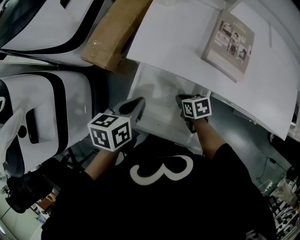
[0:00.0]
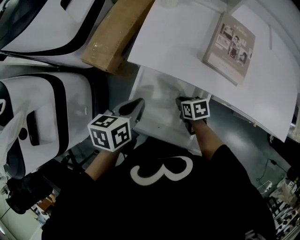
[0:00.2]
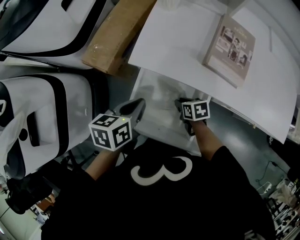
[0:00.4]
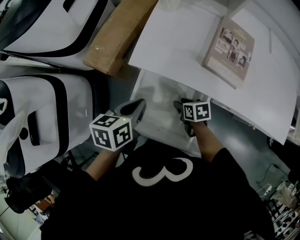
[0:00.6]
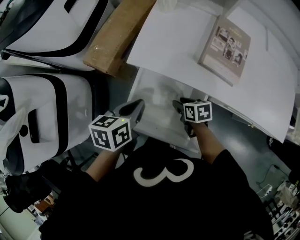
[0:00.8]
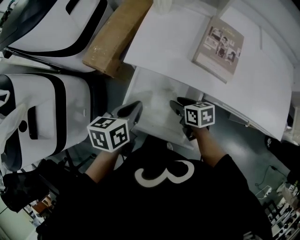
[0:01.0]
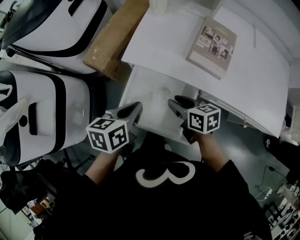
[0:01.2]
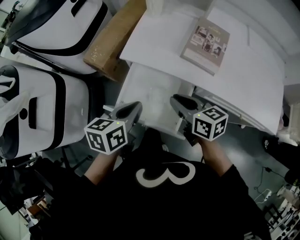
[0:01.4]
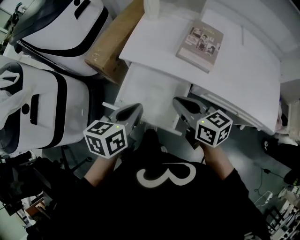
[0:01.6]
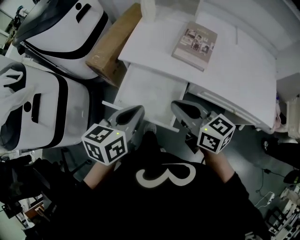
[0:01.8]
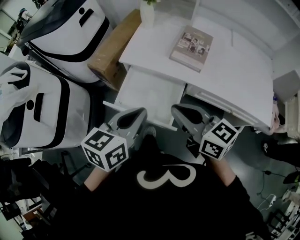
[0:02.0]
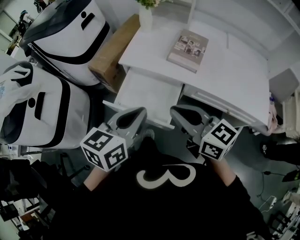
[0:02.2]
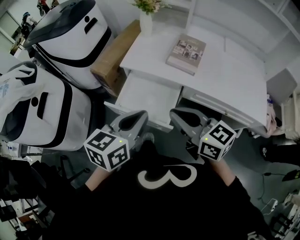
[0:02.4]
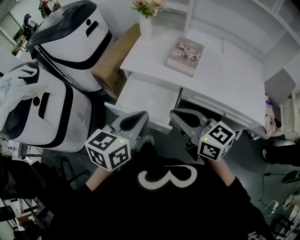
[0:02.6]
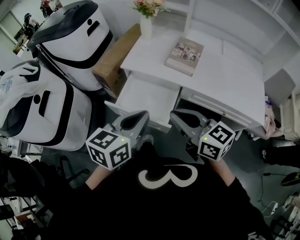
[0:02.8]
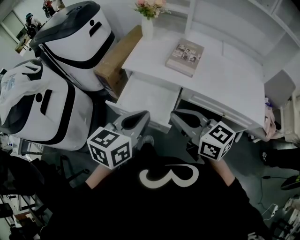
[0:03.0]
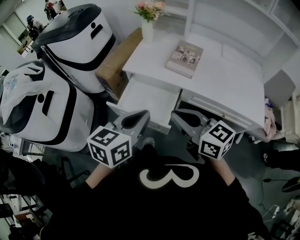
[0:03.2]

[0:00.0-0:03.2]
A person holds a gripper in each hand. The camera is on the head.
0.0 to 1.6 s: The right gripper heads upward, covering about 30 cm, tilts its fingers about 40 degrees upward, and opens, then closes once more, while the left gripper shifts approximately 15 cm backward, upward and to the right.
1.6 to 3.2 s: Both grippers move backward and upward, approximately 20 cm.

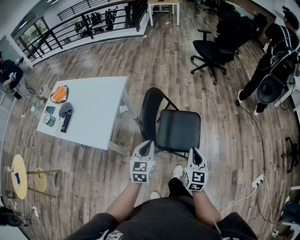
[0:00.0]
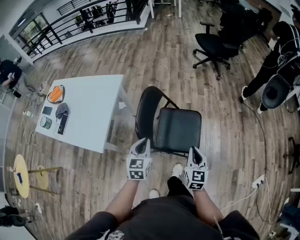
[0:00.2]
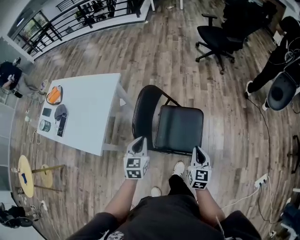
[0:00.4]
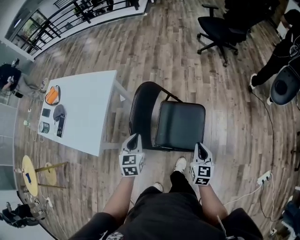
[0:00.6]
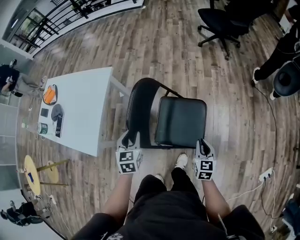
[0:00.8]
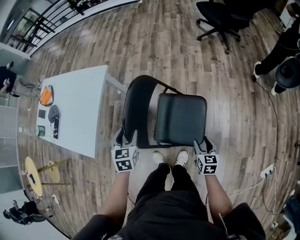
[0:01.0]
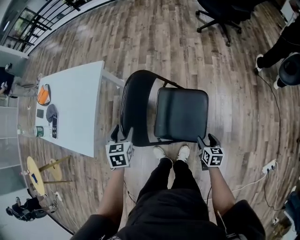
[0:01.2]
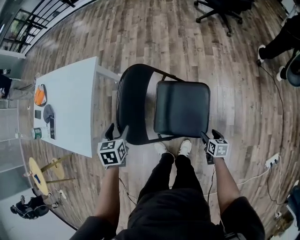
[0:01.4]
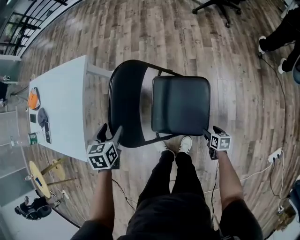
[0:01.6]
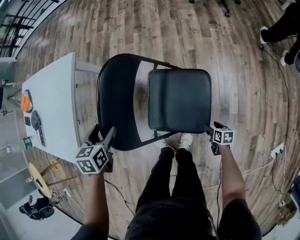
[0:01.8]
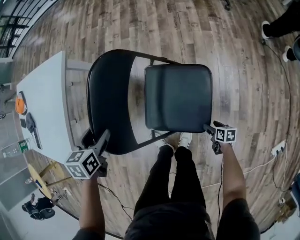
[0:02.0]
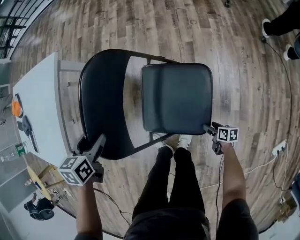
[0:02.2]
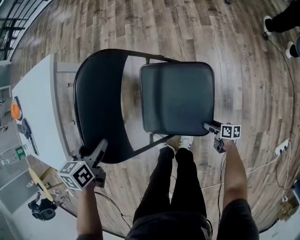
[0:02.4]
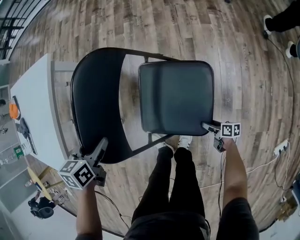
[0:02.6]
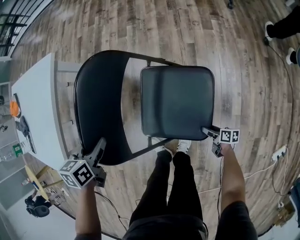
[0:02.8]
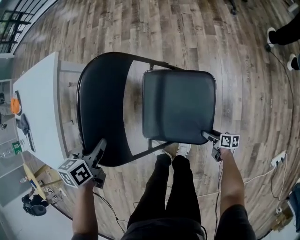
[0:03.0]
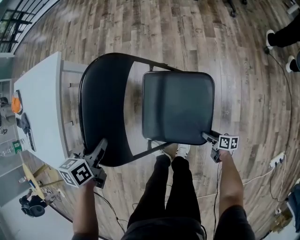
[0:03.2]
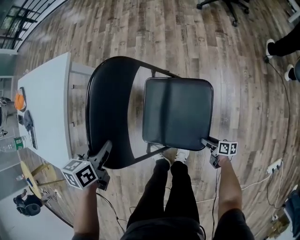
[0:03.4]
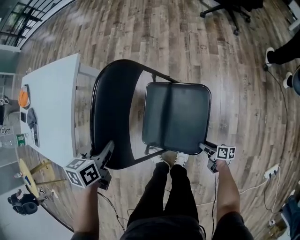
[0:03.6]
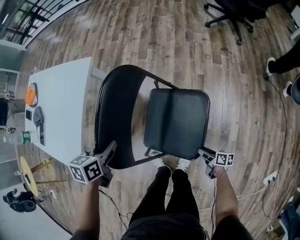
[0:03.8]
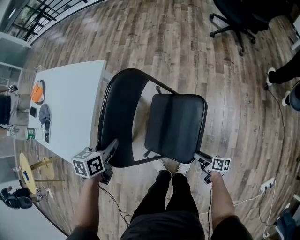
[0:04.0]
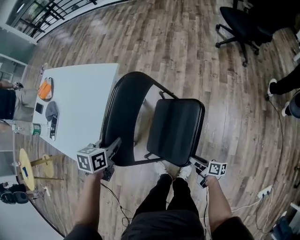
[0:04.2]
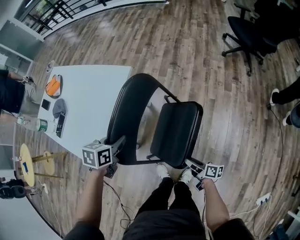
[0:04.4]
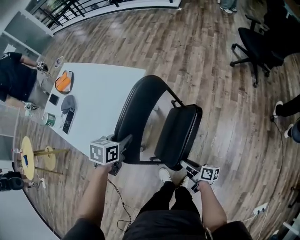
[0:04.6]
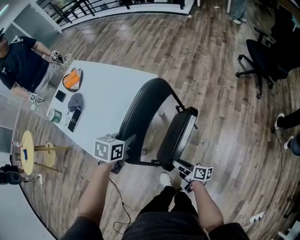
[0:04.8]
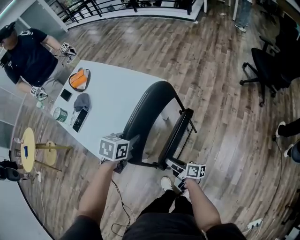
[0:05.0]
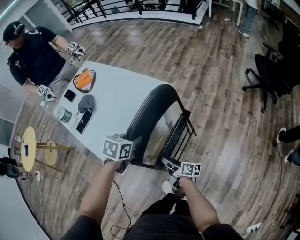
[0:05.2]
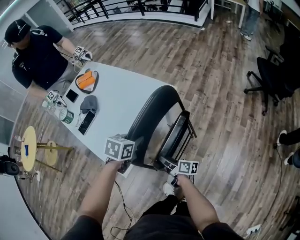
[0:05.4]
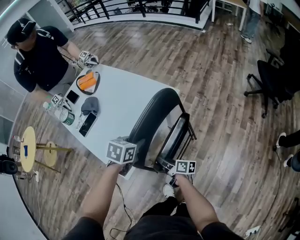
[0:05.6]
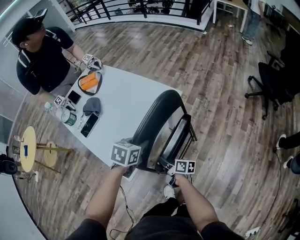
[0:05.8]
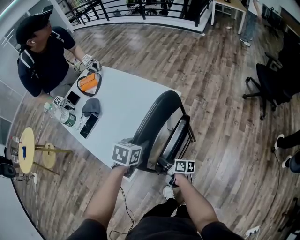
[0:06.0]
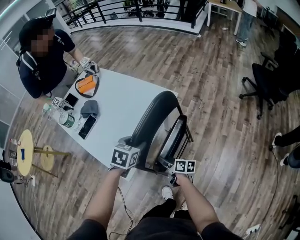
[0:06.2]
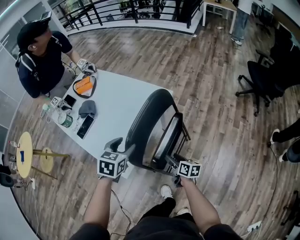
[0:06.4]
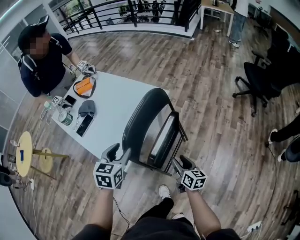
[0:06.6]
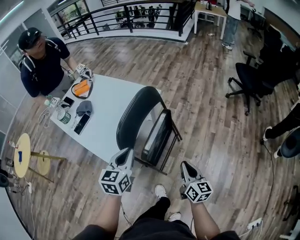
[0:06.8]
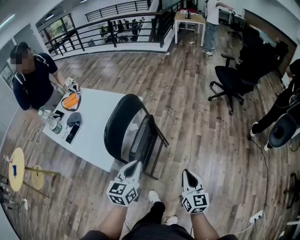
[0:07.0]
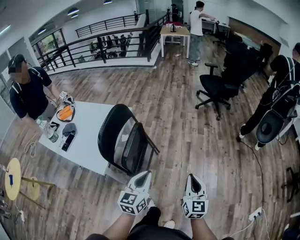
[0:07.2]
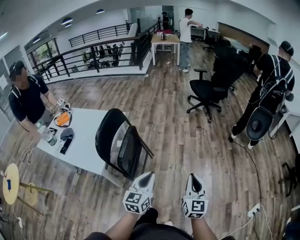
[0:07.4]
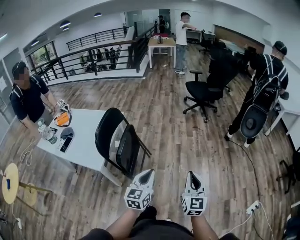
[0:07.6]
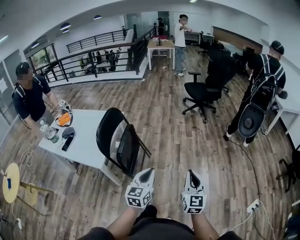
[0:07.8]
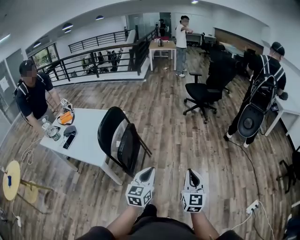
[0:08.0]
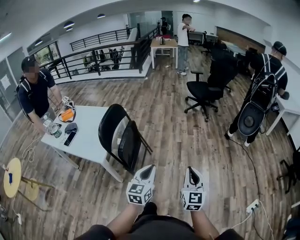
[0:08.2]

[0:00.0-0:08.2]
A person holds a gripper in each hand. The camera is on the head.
0.0 to 1.6 s: The right gripper is displaced downward by approximately 40 cm, points its fingers some 40 degrees further downward, and opens its fingers; the left gripper changes place by some 30 cm, points its fingers roughly 30 degrees further downward, and opens up.
1.6 to 3.2 s: The left gripper travels downward by about 10 cm, rotates roughly 20 degrees, and closes its fingers, while the right gripper goes about 15 cm downward, and swivels some 30 degrees.
3.2 to 5.0 s: The left gripper moves to the left, upward and forward, approximately 30 cm. Meanwhile the right gripper heads to the left, upward and forward, covering about 60 cm, turns by about 30 degrees, and closes its fingers.
5.0 to 6.6 s: The right gripper is displaced upward by roughly 5 cm, travels to the left and back again, some 10 cm each way, and turns by some 40 degrees, while the left gripper is displaced to the left, upward and backward by roughly 15 cm, changes its angle by approximately 30 degrees, and opens.
6.6 to 8.2 s: The two grippers travel together, approximately 50 cm. The right gripper turns by approximately 60 degrees, and closes; the left gripper turns by approximately 40 degrees, and closes up.

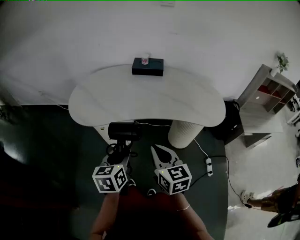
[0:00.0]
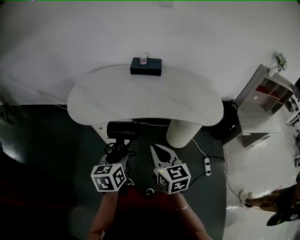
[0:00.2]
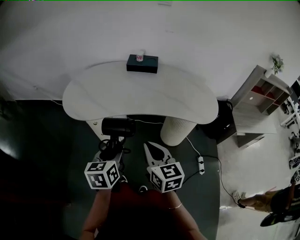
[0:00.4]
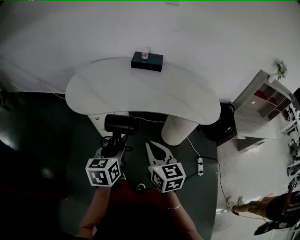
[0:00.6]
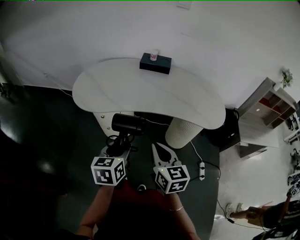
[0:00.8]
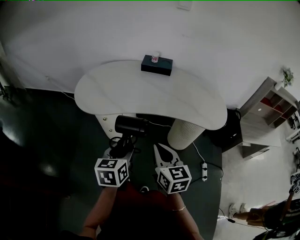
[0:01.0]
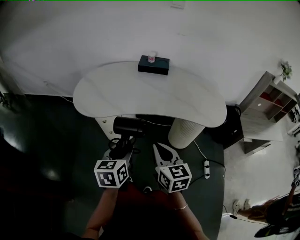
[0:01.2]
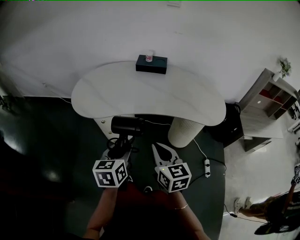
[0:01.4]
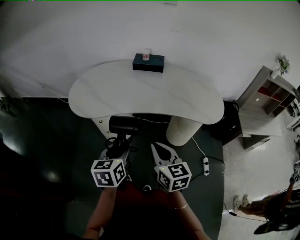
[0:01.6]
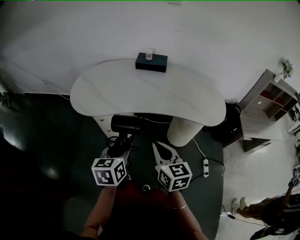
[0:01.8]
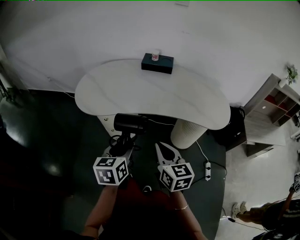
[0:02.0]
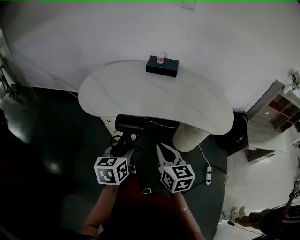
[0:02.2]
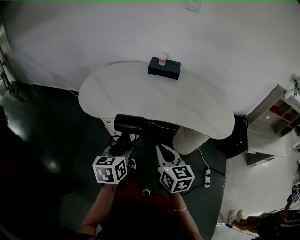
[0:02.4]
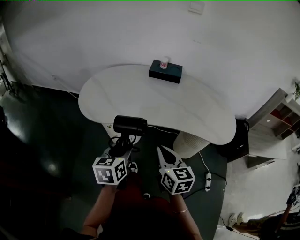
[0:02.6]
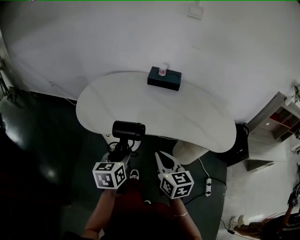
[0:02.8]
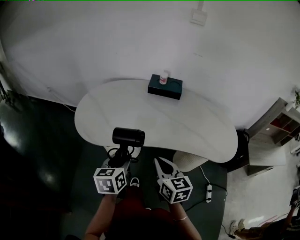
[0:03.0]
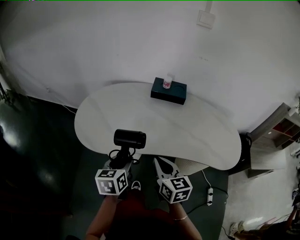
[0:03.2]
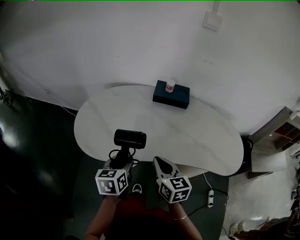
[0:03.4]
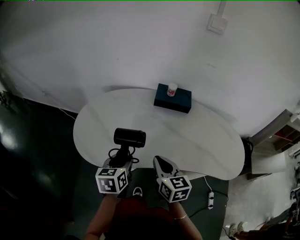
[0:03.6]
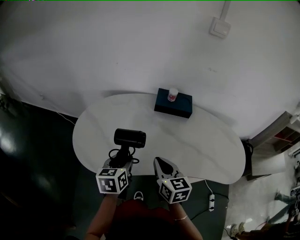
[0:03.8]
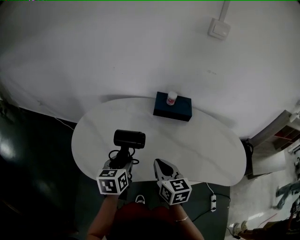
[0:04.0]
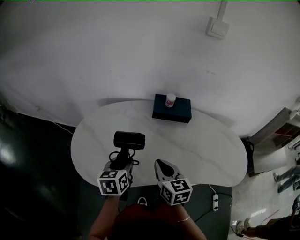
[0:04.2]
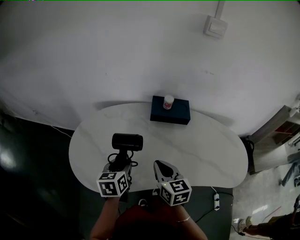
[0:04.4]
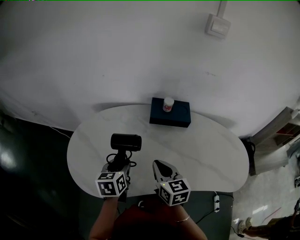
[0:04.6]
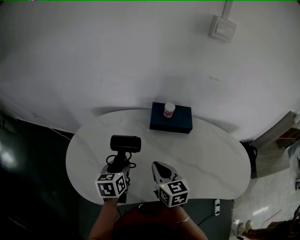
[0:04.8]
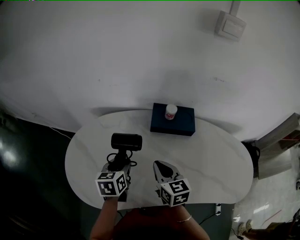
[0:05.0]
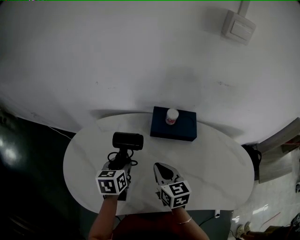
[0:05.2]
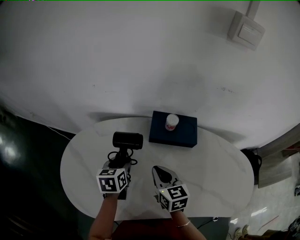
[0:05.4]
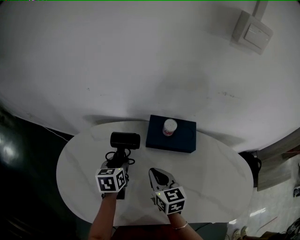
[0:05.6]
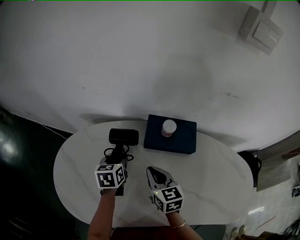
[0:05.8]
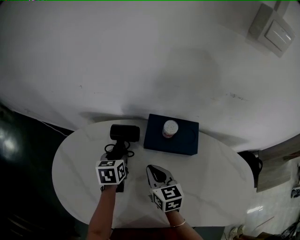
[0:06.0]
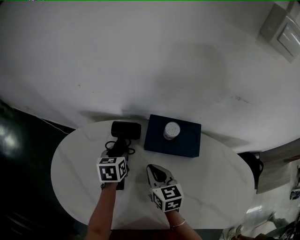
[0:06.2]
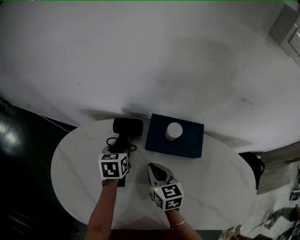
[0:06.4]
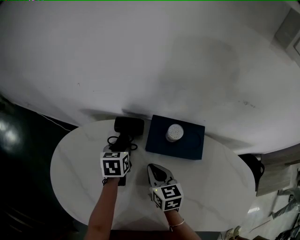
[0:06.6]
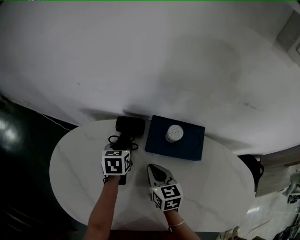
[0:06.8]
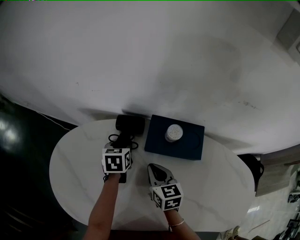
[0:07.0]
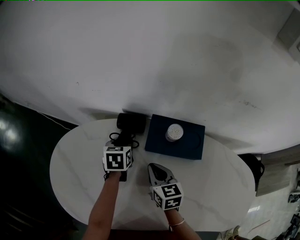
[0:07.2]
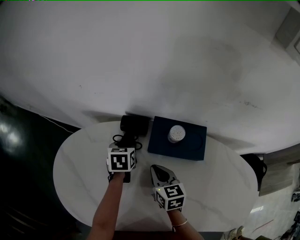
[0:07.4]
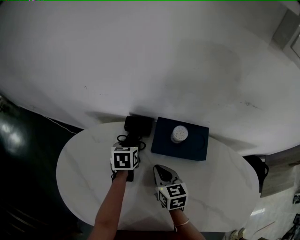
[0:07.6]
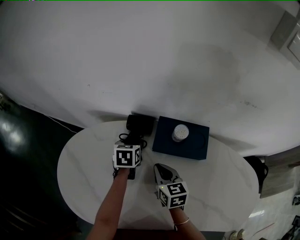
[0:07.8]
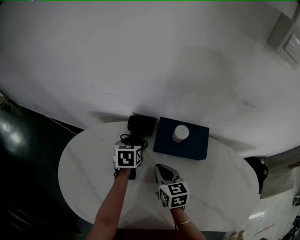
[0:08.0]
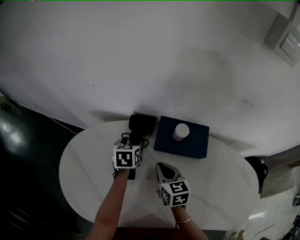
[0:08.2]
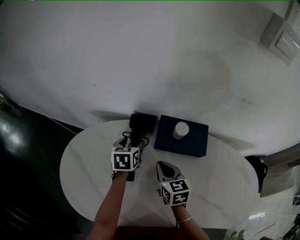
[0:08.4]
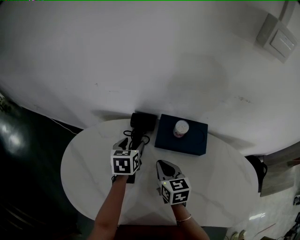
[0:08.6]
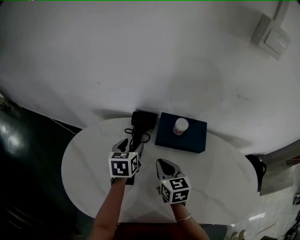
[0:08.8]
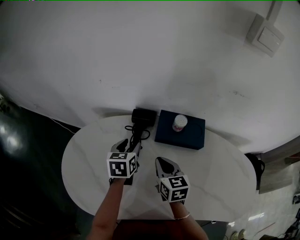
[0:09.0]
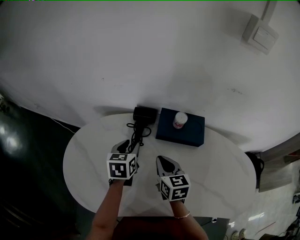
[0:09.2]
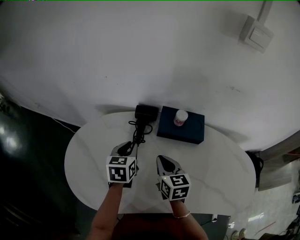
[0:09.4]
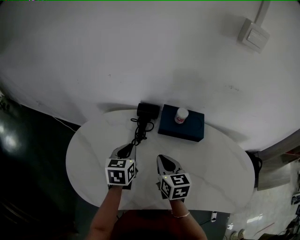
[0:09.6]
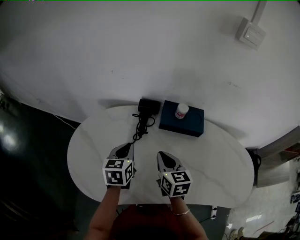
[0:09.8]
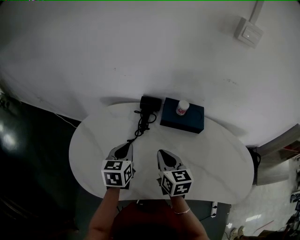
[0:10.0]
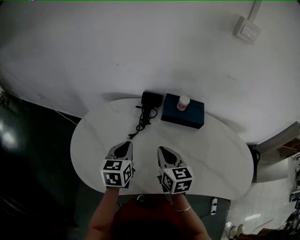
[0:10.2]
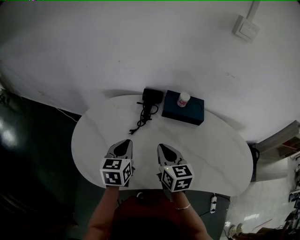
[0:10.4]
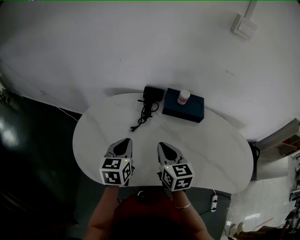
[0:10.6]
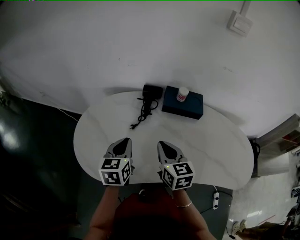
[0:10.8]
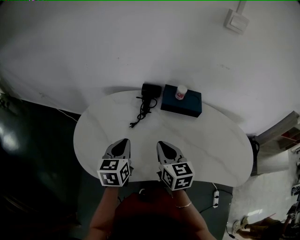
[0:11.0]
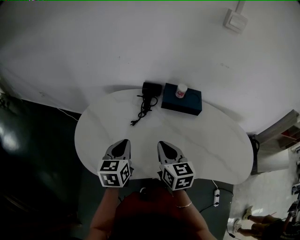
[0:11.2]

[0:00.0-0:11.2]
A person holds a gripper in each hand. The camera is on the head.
0.0 to 1.6 s: The grippers move only a little.
1.6 to 3.2 s: The two grippers go approximately 20 cm forward.
3.2 to 4.8 s: The grippers both shift forward by some 25 cm.
4.8 to 6.4 s: The left gripper moves forward, some 25 cm. Meanwhile the right gripper heads forward and downward, covering roughly 20 cm.
6.4 to 8.0 s: The grippers make only small movements.
8.0 to 9.6 s: The right gripper goes roughly 10 cm backward and upward. Meanwhile the left gripper travels backward and upward by approximately 20 cm, and closes.
9.6 to 11.2 s: The right gripper travels backward and upward by roughly 15 cm. The left gripper goes roughly 15 cm backward.

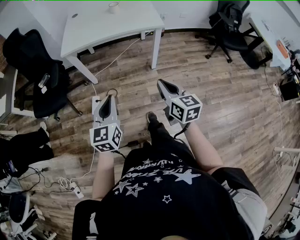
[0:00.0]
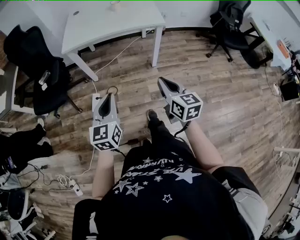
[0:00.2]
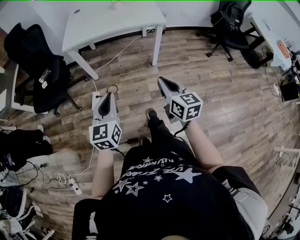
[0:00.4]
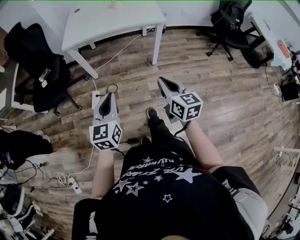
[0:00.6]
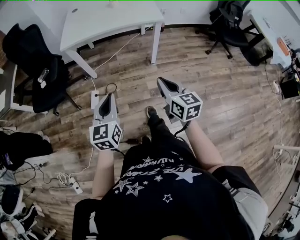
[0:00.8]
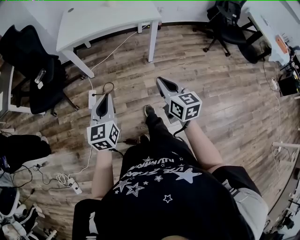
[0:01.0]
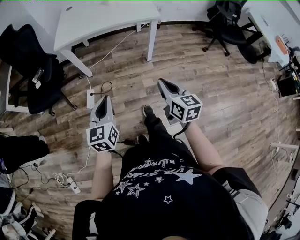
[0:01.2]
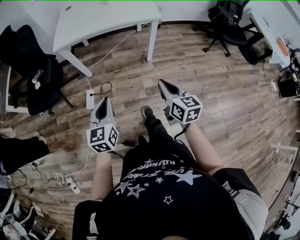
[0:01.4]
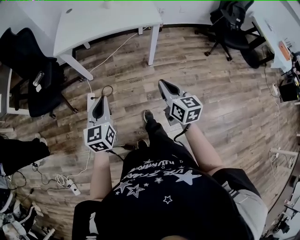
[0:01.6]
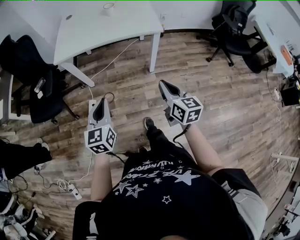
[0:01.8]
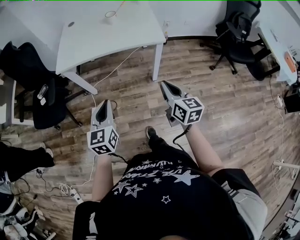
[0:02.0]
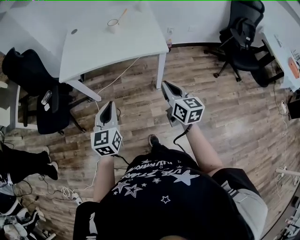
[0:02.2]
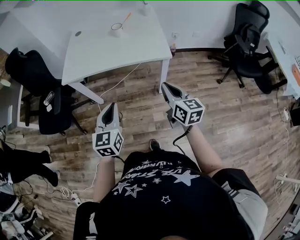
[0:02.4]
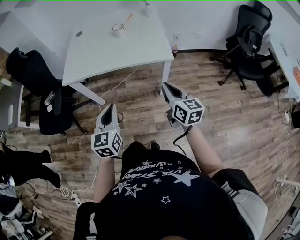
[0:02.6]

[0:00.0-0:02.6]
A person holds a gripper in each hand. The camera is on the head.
0.0 to 1.2 s: The grippers move only a little.
1.2 to 2.6 s: The two grippers go some 25 cm forward.
